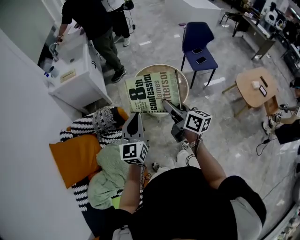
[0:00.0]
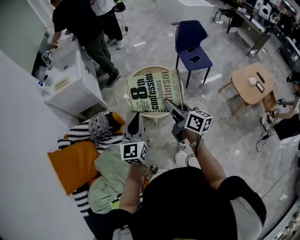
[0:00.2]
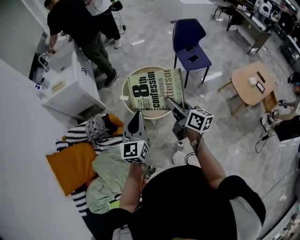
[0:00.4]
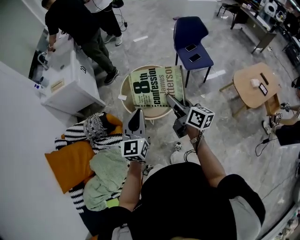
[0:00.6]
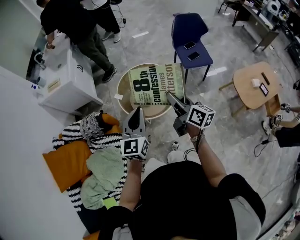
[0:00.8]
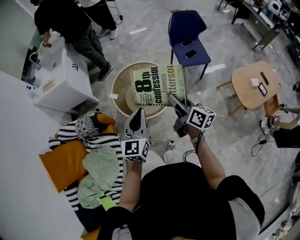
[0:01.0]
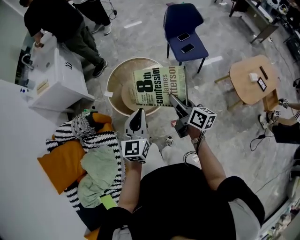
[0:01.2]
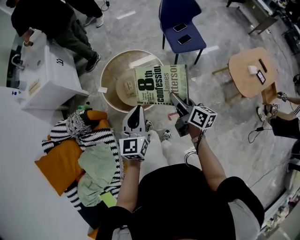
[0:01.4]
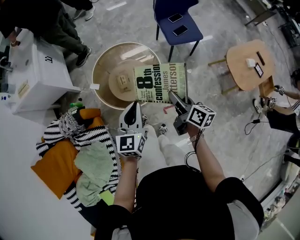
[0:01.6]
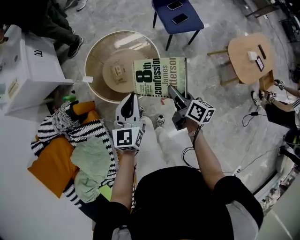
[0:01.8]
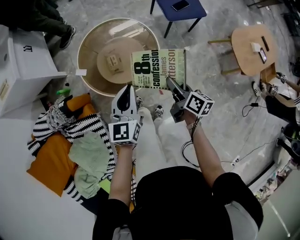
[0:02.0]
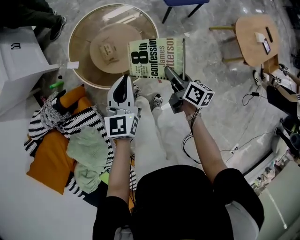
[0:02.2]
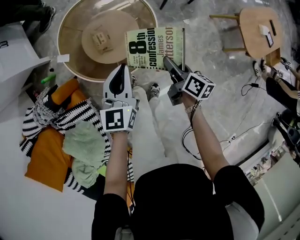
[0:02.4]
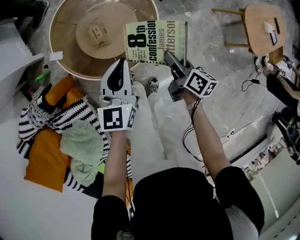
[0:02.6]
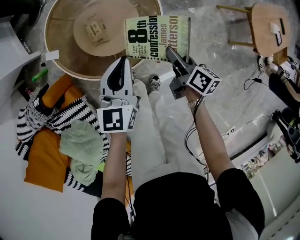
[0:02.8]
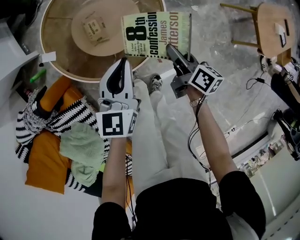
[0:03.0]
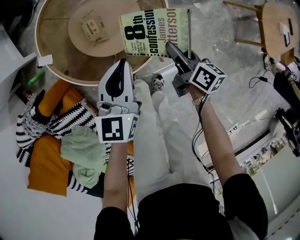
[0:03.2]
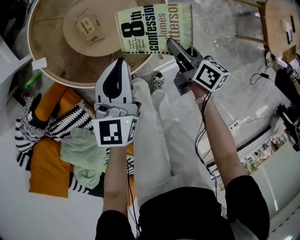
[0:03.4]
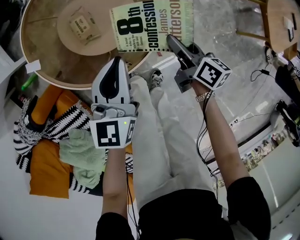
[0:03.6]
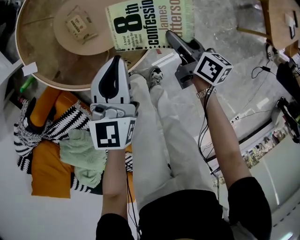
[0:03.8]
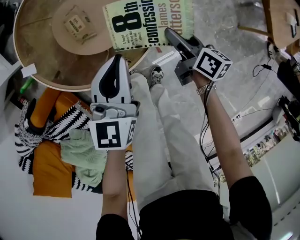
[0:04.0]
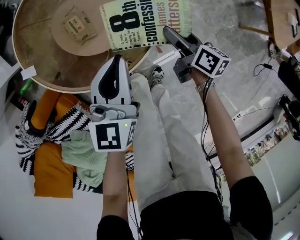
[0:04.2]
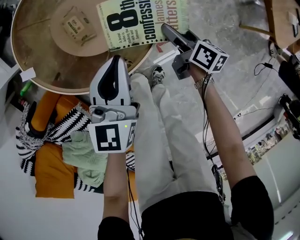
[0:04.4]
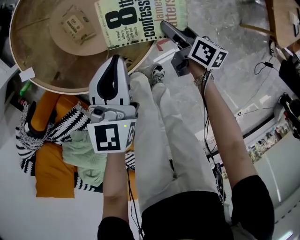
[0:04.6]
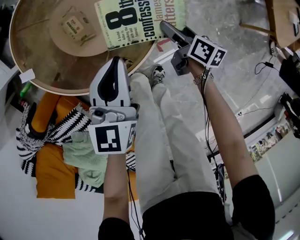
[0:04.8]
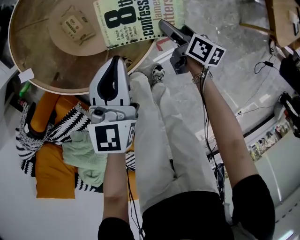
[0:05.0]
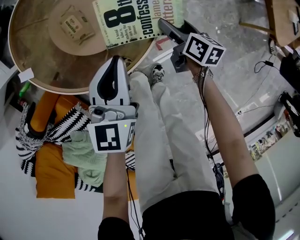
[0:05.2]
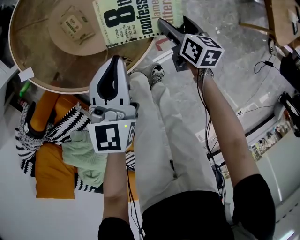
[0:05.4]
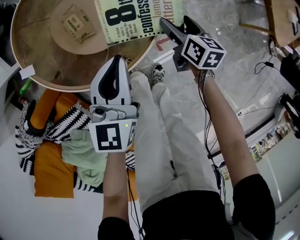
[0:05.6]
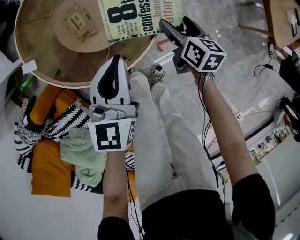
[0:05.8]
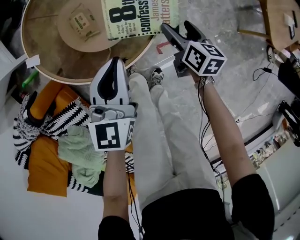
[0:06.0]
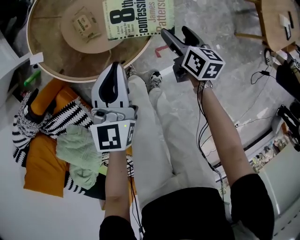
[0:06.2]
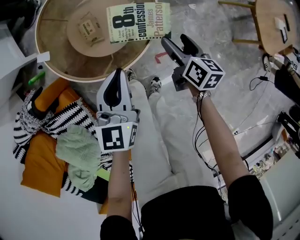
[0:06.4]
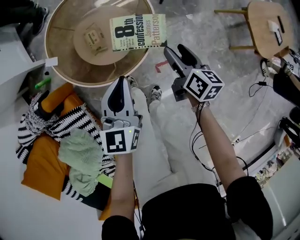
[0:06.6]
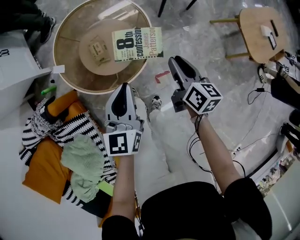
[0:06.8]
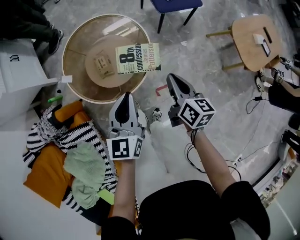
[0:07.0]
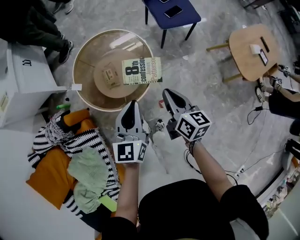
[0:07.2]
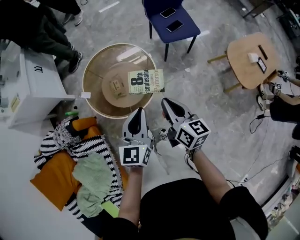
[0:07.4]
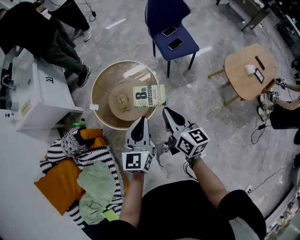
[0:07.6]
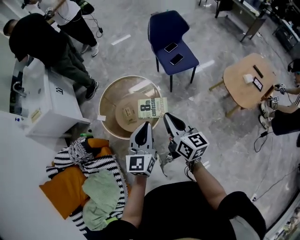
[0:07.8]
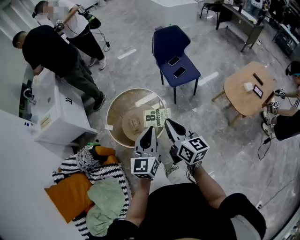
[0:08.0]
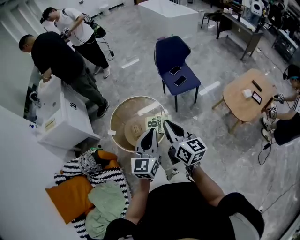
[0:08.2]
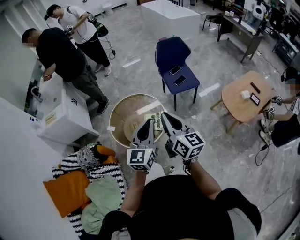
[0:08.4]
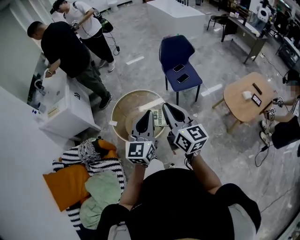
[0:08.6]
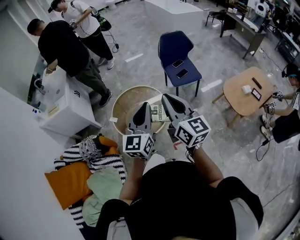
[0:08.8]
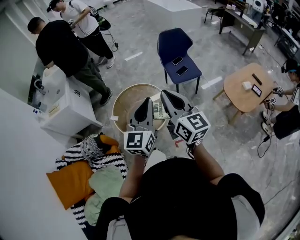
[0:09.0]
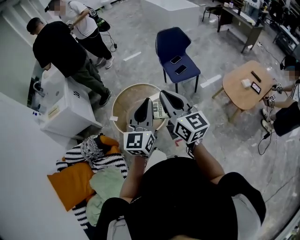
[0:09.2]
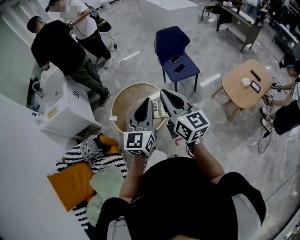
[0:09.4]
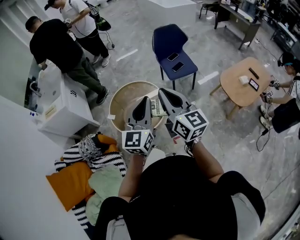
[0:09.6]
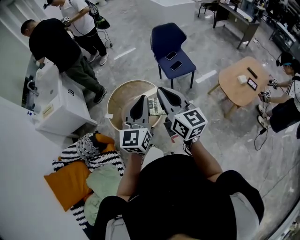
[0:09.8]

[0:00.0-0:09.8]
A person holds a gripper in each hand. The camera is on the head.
0:00.0 to 0:01.4: The right gripper travels to the right, downward and forward by about 35 cm. Meanwhile the left gripper shifts approximately 30 cm to the right and forward.
0:01.4 to 0:02.8: The right gripper goes roughly 35 cm downward, and swivels roughly 20 degrees. The left gripper shifts about 35 cm downward and forward.
0:02.8 to 0:04.2: Both grippers travel together downward, roughly 15 cm. The right gripper opens its fingers.
0:04.2 to 0:05.6: The right gripper swivels about 20 degrees.
0:05.6 to 0:07.0: Both grippers travel together upward, some 25 cm. The right gripper closes.
0:07.0 to 0:08.4: The grippers both shift upward by some 35 cm. The left gripper turns by some 20 degrees, while the right gripper rotates some 30 degrees.
0:08.4 to 0:09.8: Both grippers move upward, approximately 5 cm.

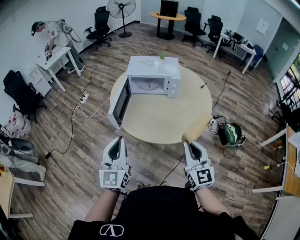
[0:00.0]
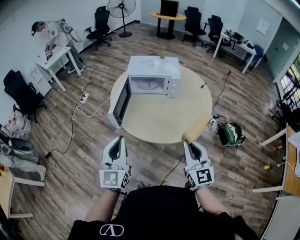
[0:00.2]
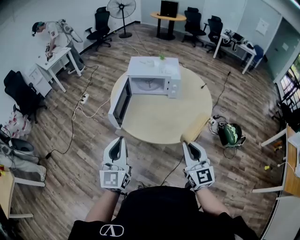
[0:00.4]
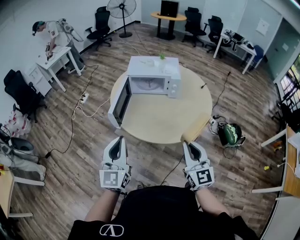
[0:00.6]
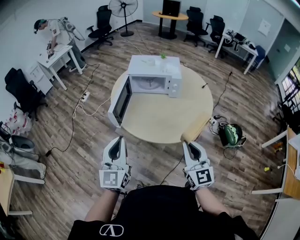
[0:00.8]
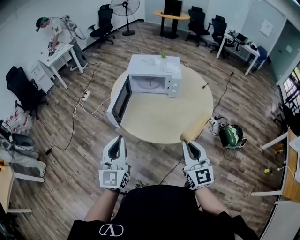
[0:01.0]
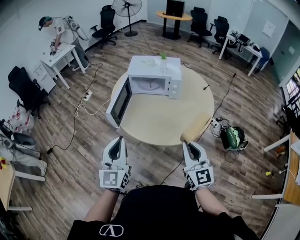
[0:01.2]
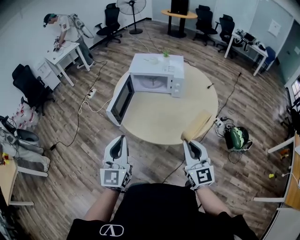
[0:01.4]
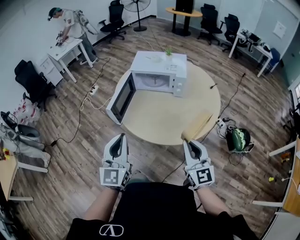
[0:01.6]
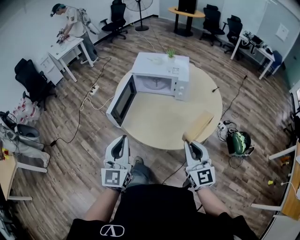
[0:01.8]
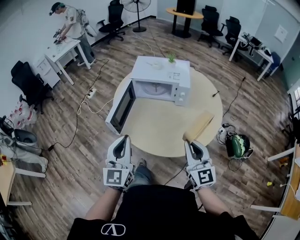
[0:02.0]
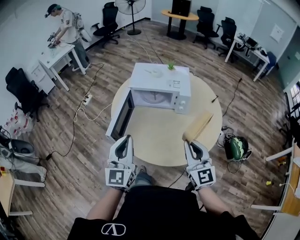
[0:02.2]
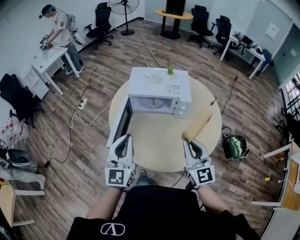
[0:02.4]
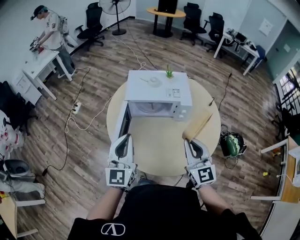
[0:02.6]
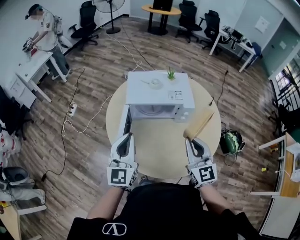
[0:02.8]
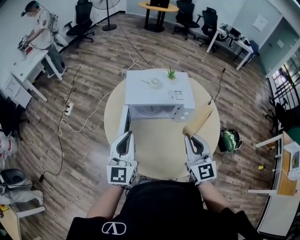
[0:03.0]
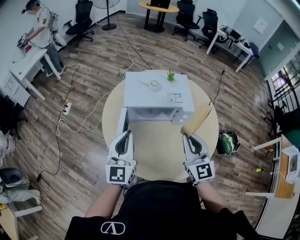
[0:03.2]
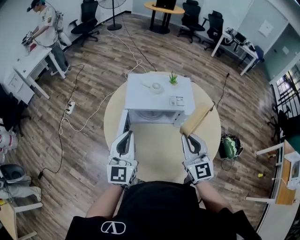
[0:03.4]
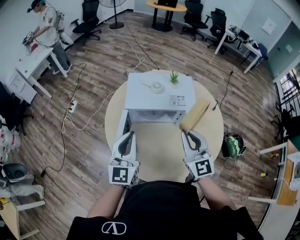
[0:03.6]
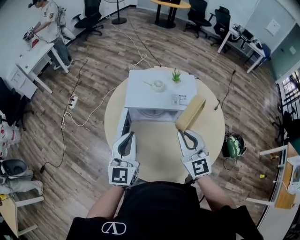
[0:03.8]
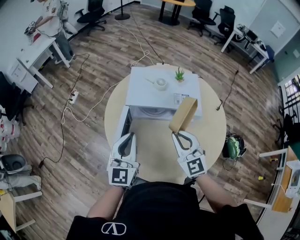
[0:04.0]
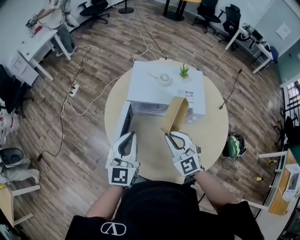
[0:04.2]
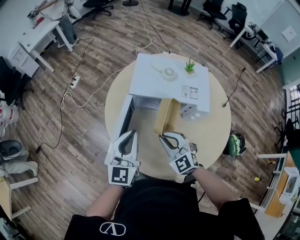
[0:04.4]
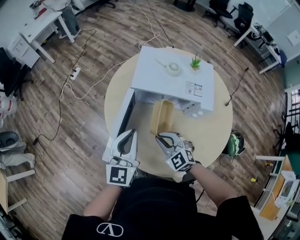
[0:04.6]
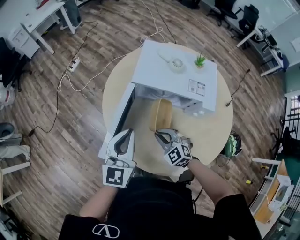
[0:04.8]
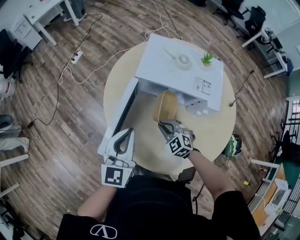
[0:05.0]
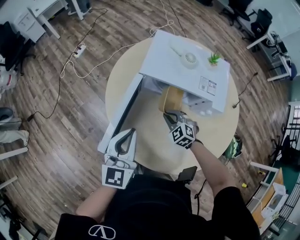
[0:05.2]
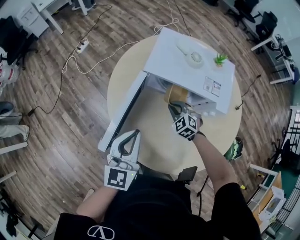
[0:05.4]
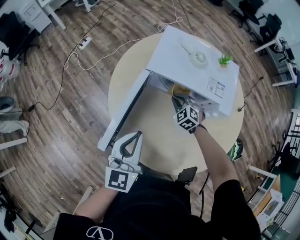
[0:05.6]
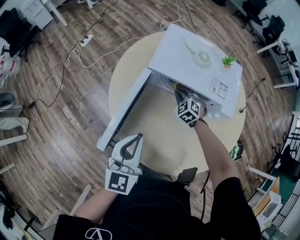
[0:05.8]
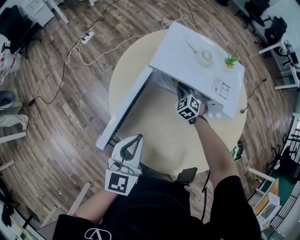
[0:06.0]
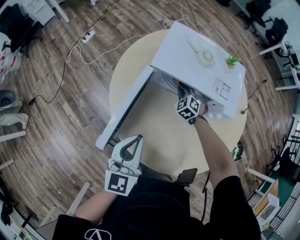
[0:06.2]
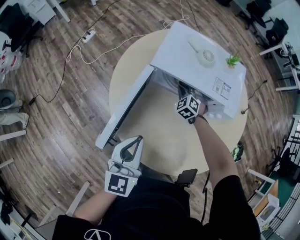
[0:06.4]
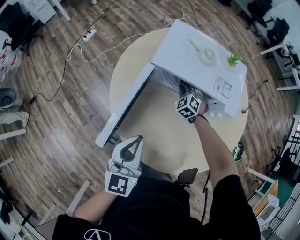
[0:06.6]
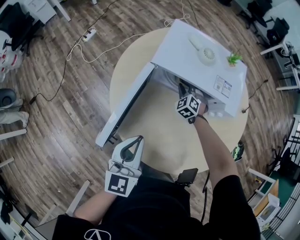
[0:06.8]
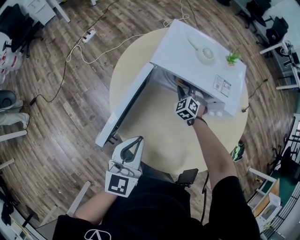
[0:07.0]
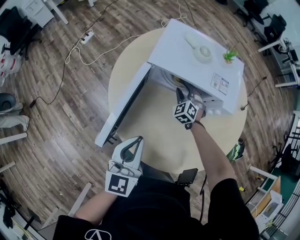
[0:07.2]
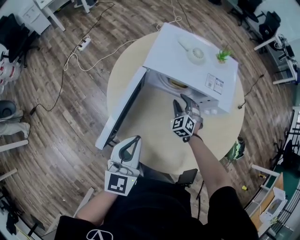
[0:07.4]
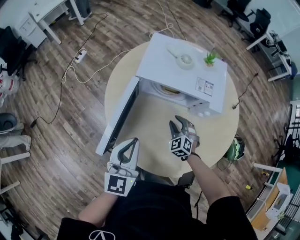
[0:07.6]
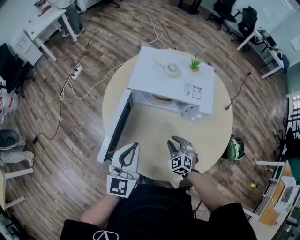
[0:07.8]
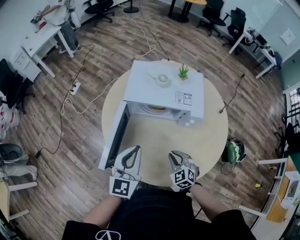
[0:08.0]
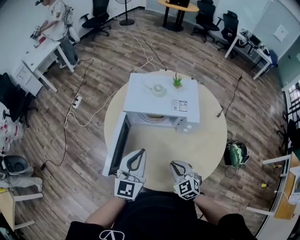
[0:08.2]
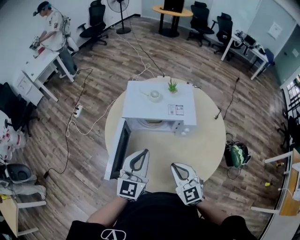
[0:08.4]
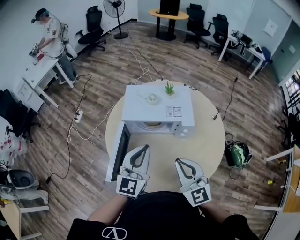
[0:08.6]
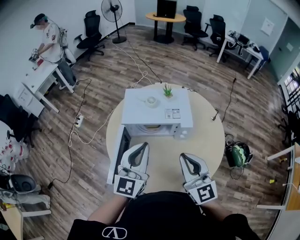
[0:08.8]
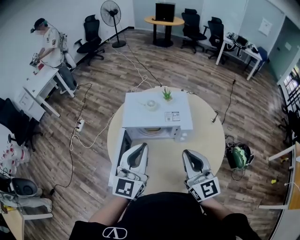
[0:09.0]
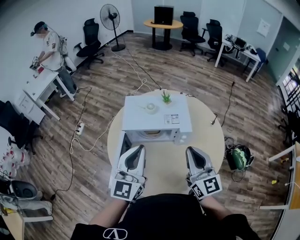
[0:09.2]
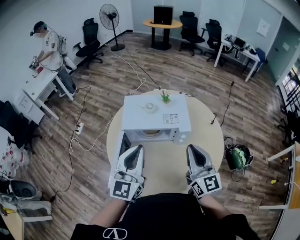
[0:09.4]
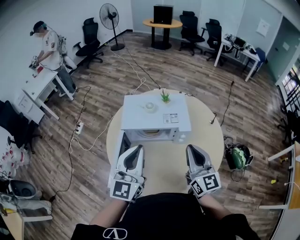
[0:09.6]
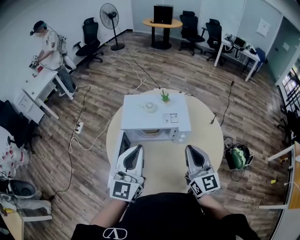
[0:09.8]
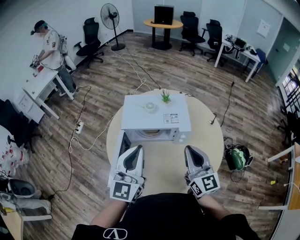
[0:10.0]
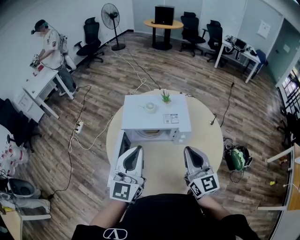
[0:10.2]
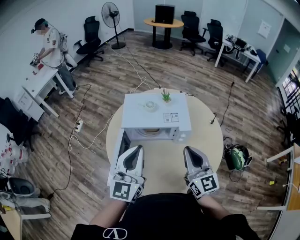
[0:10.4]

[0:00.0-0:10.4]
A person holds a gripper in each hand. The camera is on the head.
0:00.0 to 0:01.4: The left gripper goes roughly 5 cm to the right; the right gripper shifts by approximately 5 cm.
0:01.4 to 0:03.0: The grippers both shift forward by roughly 35 cm.
0:03.0 to 0:04.4: The right gripper goes about 20 cm downward, to the left and forward, and swivels about 40 degrees. The left gripper is displaced downward by roughly 5 cm.
0:04.4 to 0:06.0: The left gripper travels downward by roughly 10 cm; the right gripper heads downward and forward, covering roughly 30 cm, and turns by about 30 degrees.
0:06.0 to 0:07.4: The right gripper heads backward, covering approximately 5 cm, and opens up.
0:07.4 to 0:09.0: The left gripper travels upward and to the right by roughly 25 cm, and turns by some 30 degrees. Meanwhile the right gripper shifts roughly 40 cm upward and backward, tips its fingers upward by about 40 degrees, and closes.
0:09.0 to 0:10.4: The grippers stay close to where they were, moving slightly.

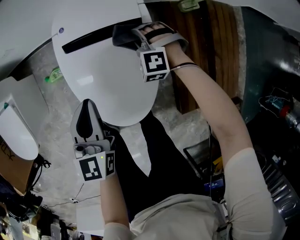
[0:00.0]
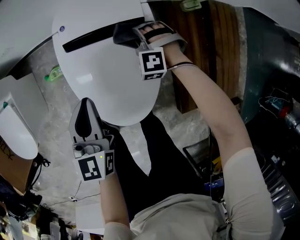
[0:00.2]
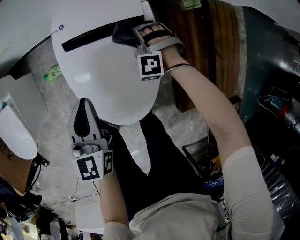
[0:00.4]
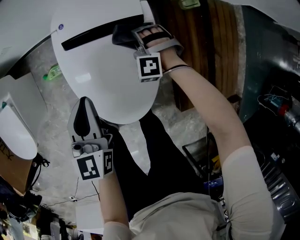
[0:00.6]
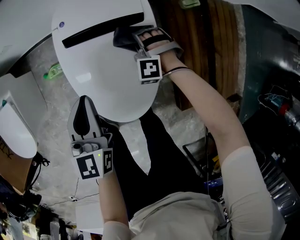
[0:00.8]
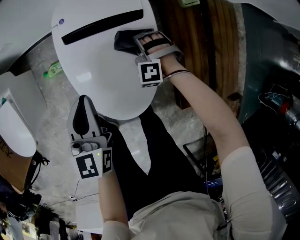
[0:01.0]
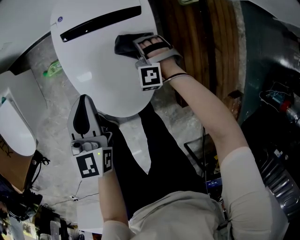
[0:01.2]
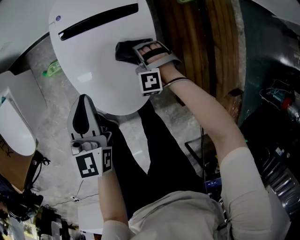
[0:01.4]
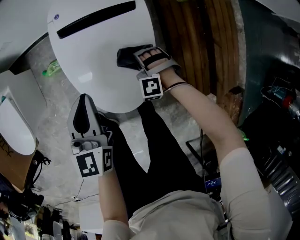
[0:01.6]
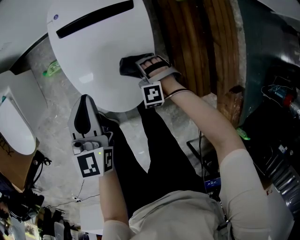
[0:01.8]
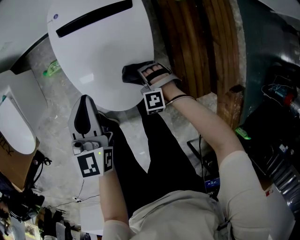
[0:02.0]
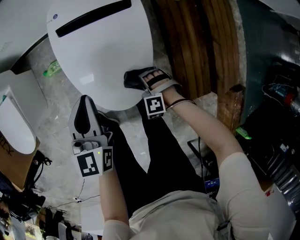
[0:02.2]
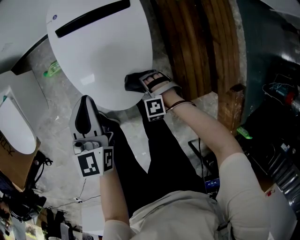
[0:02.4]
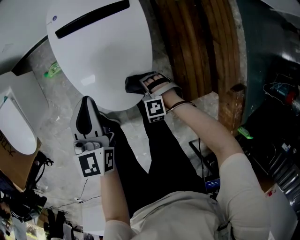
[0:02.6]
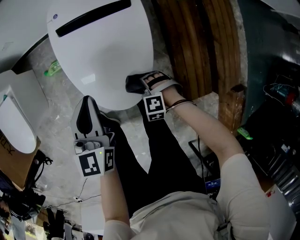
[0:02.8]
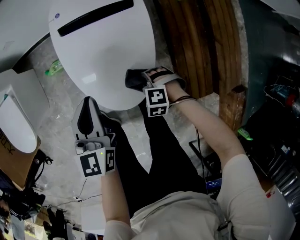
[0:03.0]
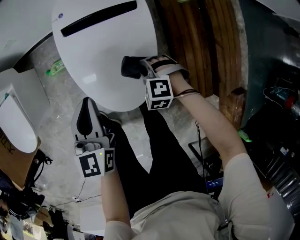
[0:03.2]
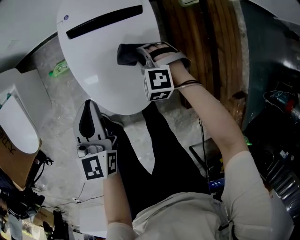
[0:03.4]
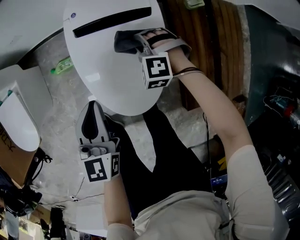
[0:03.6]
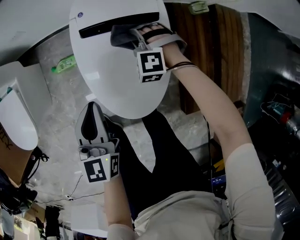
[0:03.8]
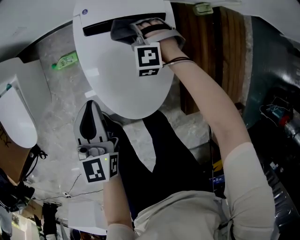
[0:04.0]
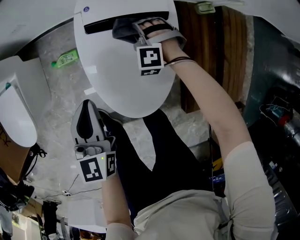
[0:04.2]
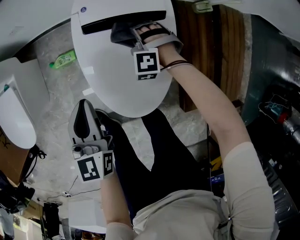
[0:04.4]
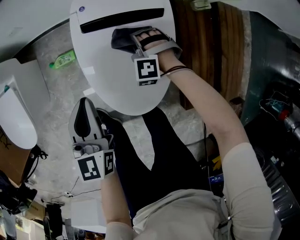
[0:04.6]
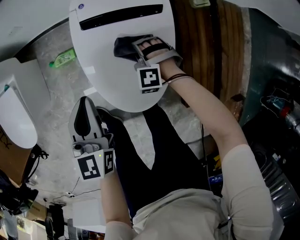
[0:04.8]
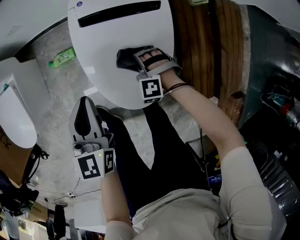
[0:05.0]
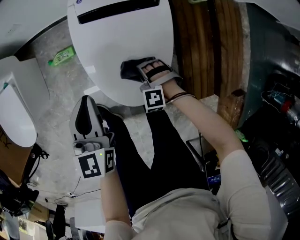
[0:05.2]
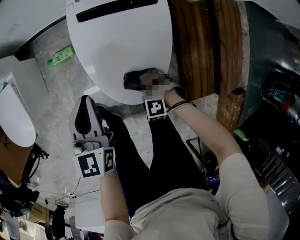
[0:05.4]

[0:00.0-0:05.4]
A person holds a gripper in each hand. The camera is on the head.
0:02.8 to 0:04.0: The left gripper ends up roughly 10 cm from where it was.
